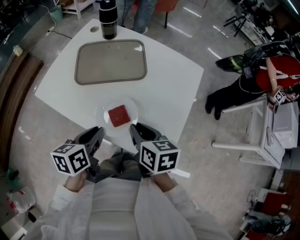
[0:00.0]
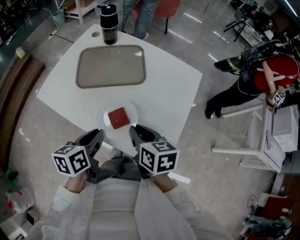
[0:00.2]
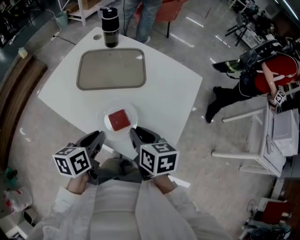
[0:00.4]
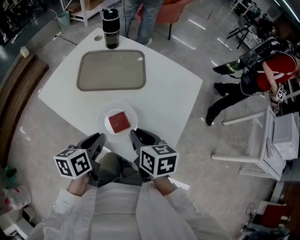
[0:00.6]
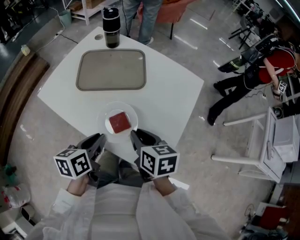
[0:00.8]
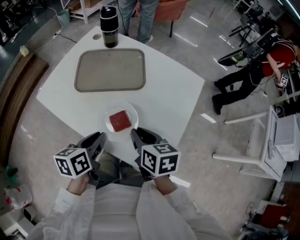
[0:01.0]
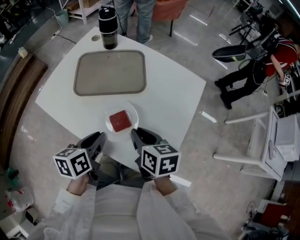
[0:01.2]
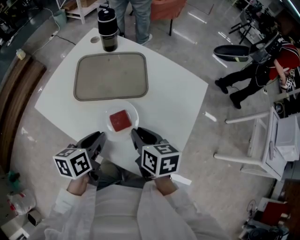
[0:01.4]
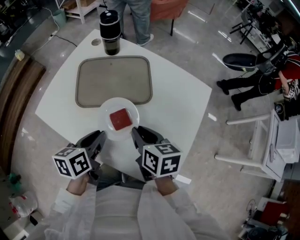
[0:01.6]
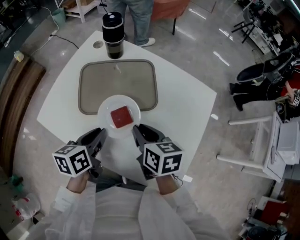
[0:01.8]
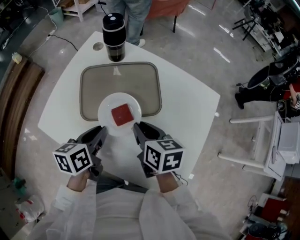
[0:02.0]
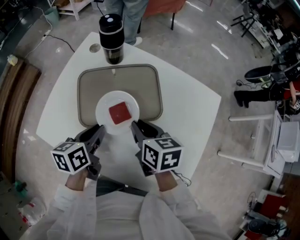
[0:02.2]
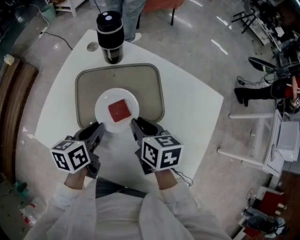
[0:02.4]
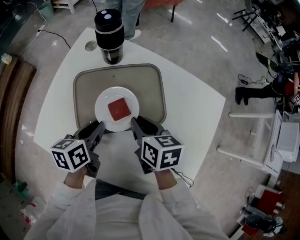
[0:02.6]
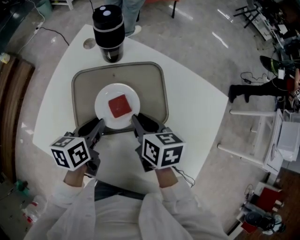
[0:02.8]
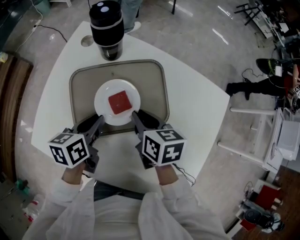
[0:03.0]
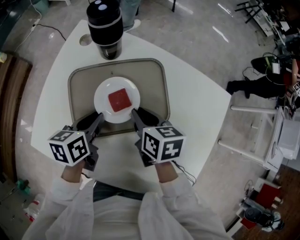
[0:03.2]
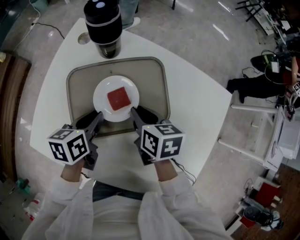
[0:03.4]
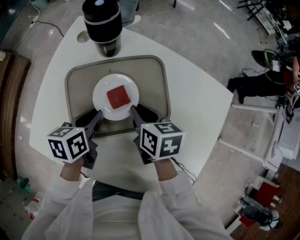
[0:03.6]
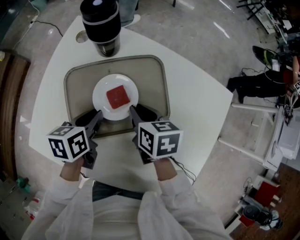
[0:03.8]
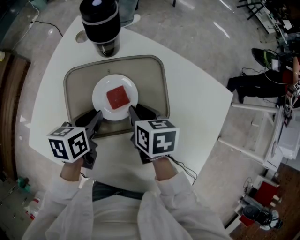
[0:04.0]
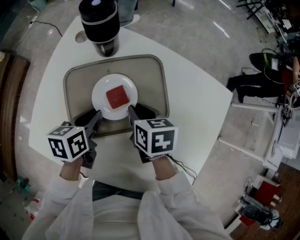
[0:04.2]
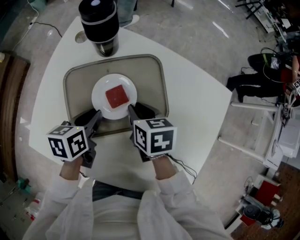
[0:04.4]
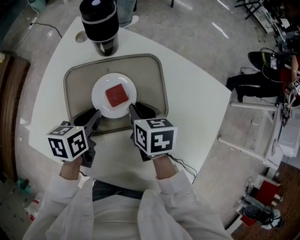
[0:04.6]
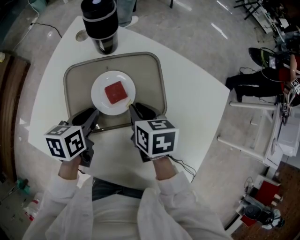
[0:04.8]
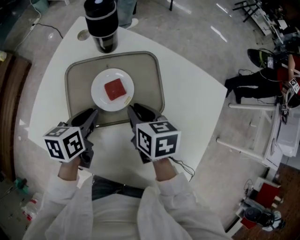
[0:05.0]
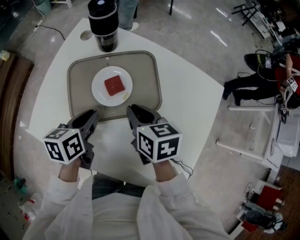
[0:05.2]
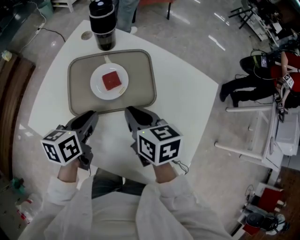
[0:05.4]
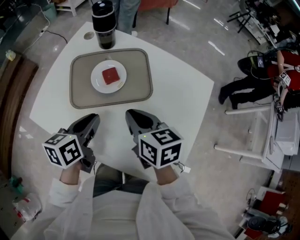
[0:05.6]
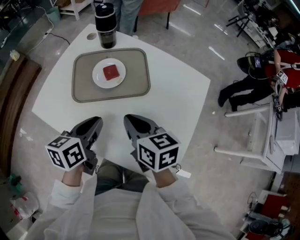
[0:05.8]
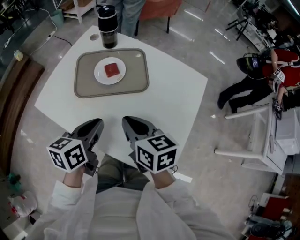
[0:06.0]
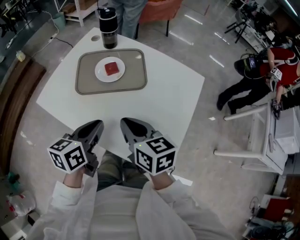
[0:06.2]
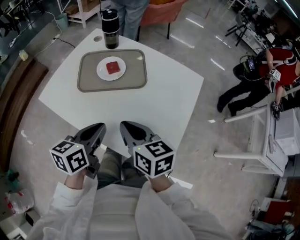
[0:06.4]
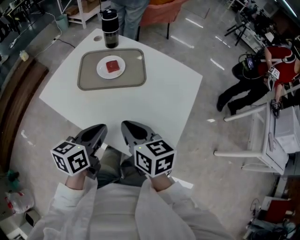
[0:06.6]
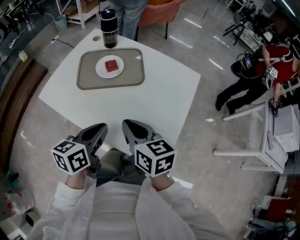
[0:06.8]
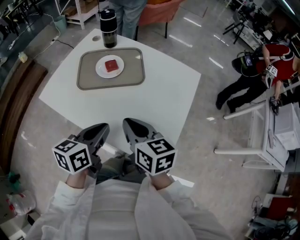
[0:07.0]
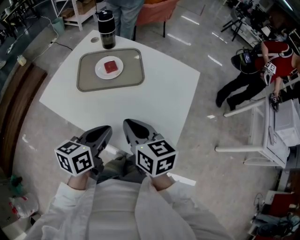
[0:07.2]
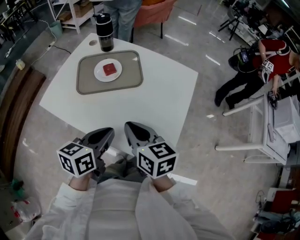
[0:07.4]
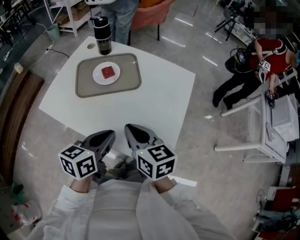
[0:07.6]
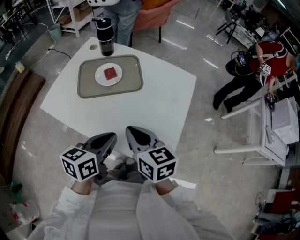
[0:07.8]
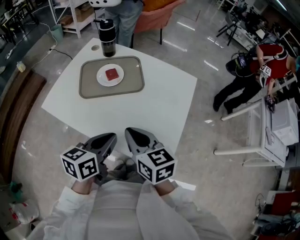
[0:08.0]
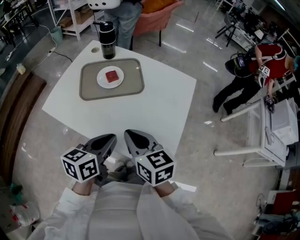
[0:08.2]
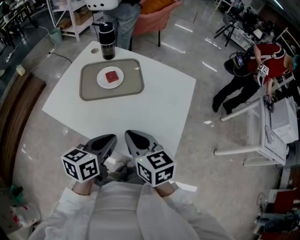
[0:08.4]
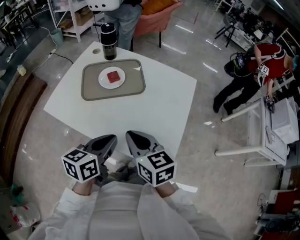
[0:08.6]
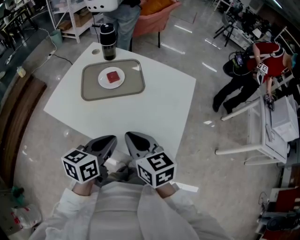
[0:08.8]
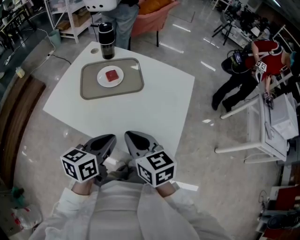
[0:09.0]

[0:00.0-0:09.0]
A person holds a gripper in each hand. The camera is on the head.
0:00.0 to 0:01.6: Both grippers move forward, approximately 10 cm.
0:01.6 to 0:03.0: The grippers both shift forward by roughly 20 cm.
0:03.0 to 0:04.4: The grippers stay close to where they were, moving slightly.
0:04.4 to 0:06.0: Both grippers move backward and upward, some 25 cm. The right gripper swivels about 30 degrees.
0:06.0 to 0:07.6: The right gripper moves backward, approximately 10 cm. Meanwhile the left gripper is displaced backward and to the right by some 10 cm.
0:07.6 to 0:09.0: The grippers make only small movements.

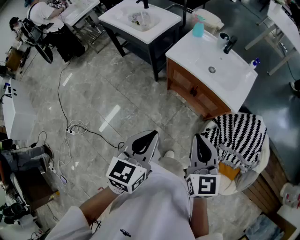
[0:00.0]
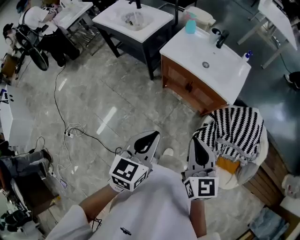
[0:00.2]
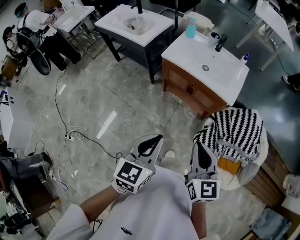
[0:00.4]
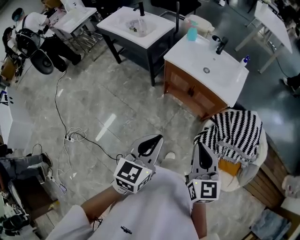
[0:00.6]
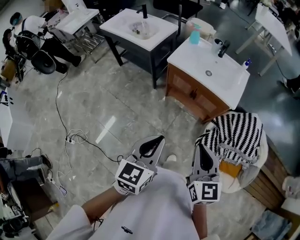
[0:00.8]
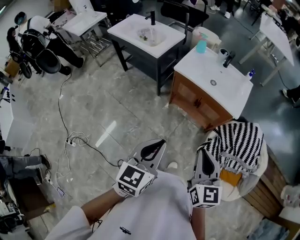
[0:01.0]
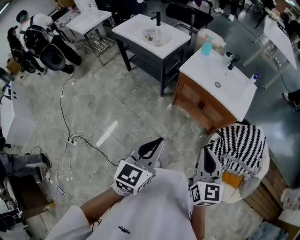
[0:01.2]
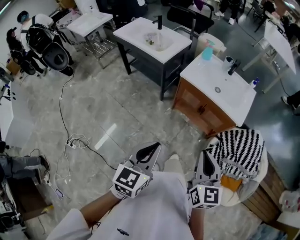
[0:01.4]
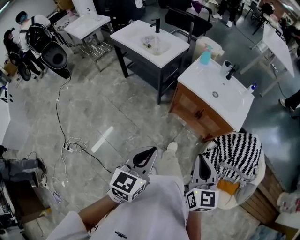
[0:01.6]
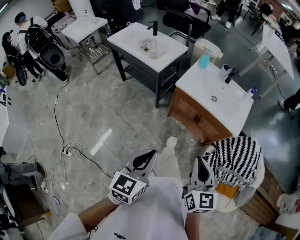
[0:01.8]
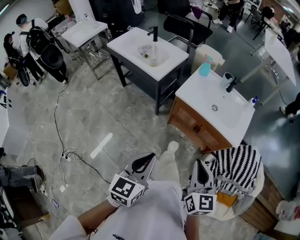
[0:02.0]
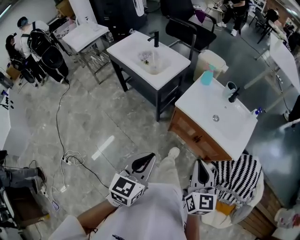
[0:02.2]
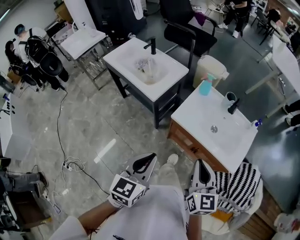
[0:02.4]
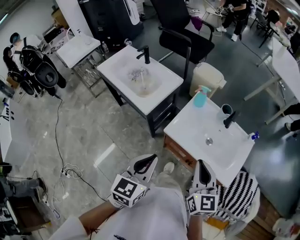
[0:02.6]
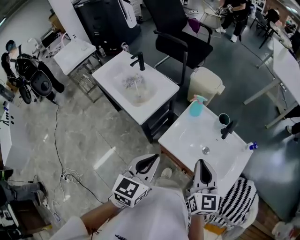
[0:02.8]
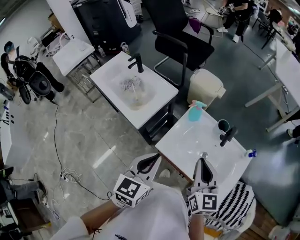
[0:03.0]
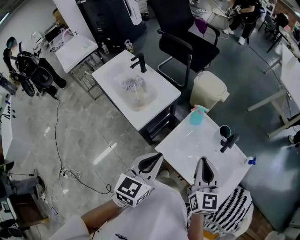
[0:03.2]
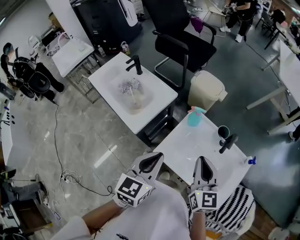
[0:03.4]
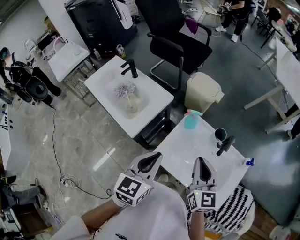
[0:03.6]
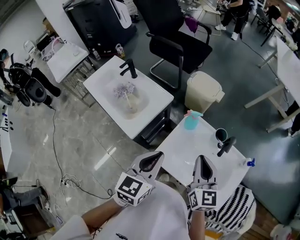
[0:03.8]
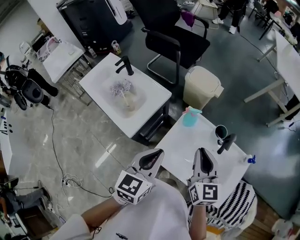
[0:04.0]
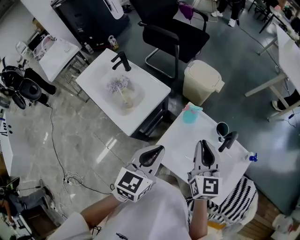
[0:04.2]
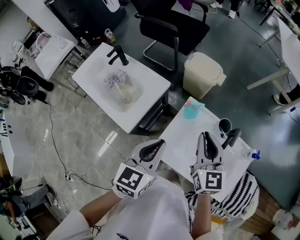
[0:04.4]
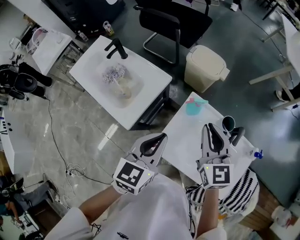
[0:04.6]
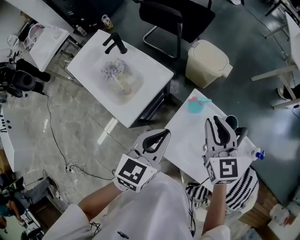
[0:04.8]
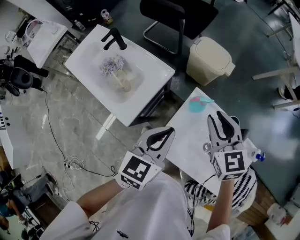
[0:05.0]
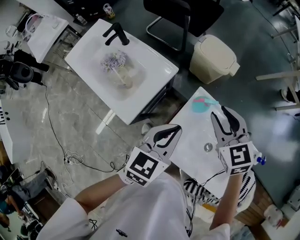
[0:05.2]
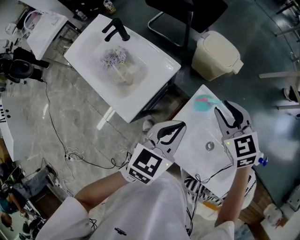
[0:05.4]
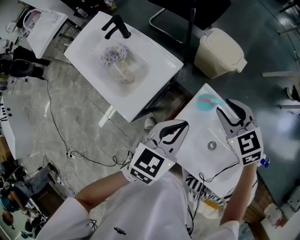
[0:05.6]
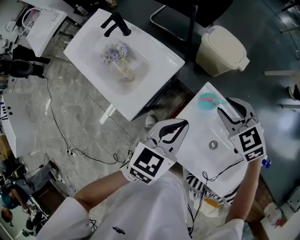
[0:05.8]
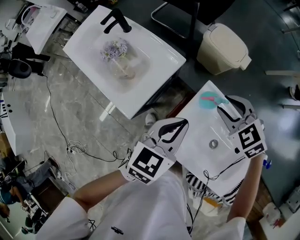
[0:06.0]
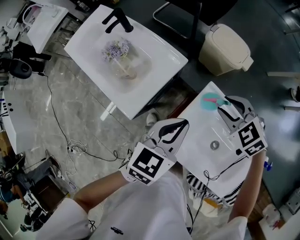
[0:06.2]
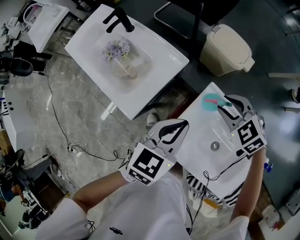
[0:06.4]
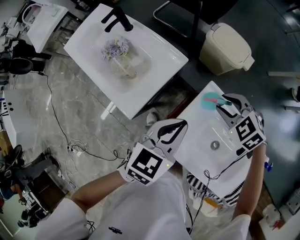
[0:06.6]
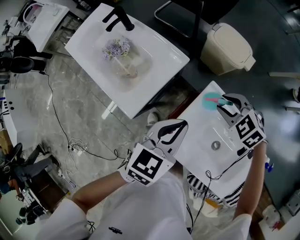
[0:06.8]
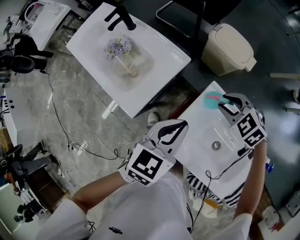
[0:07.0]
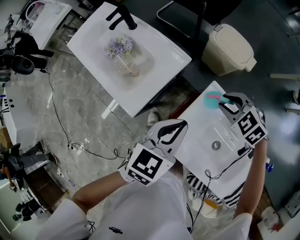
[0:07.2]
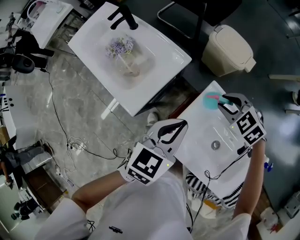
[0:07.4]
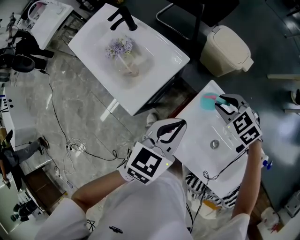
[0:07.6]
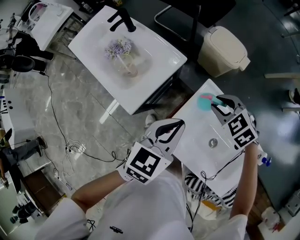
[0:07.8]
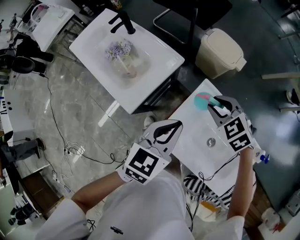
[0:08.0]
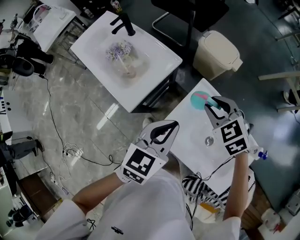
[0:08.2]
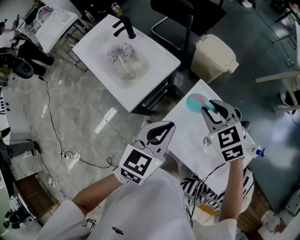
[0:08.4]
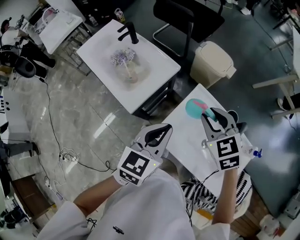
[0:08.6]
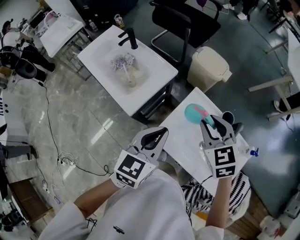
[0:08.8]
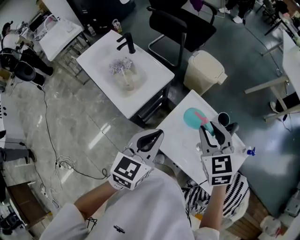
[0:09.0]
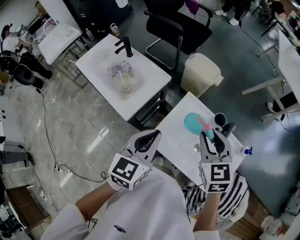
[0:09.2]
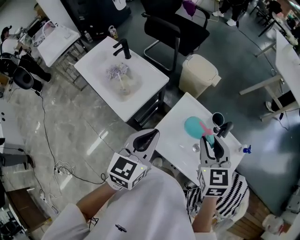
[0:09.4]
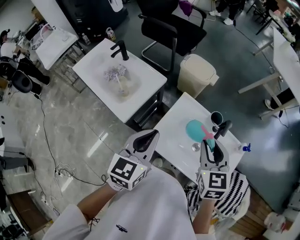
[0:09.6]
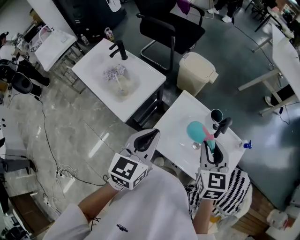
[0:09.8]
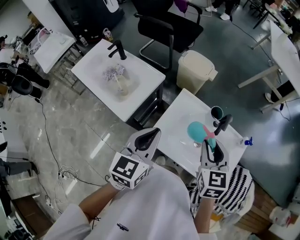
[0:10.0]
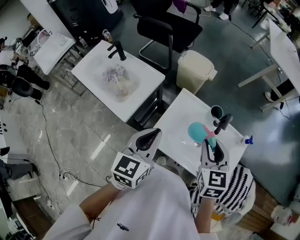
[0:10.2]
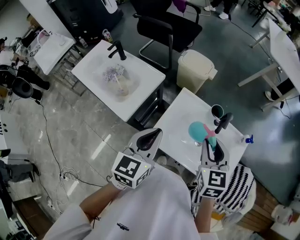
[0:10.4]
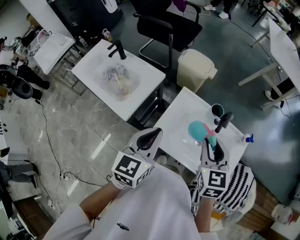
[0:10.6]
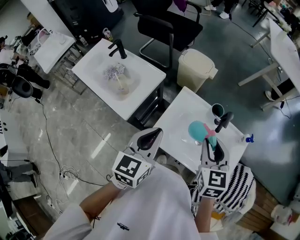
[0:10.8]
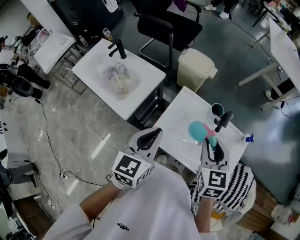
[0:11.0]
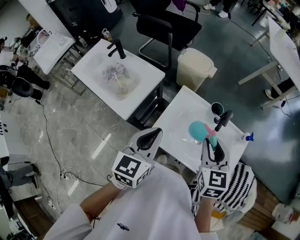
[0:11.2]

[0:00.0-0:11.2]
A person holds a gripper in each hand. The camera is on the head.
0:00.0 to 0:01.6: The grippers both shift to the left by about 10 cm.
0:01.6 to 0:03.2: Both grippers are carried forward, about 50 cm.
0:03.2 to 0:04.8: Both grippers move forward, approximately 15 cm.
0:04.8 to 0:06.4: The left gripper shifts roughly 10 cm downward and forward; the right gripper is displaced downward and forward by some 15 cm, and tilts its fingers approximately 30 degrees downward.
0:06.4 to 0:08.0: The left gripper heads backward, covering some 5 cm.
0:08.0 to 0:09.6: The right gripper moves backward, upward and to the right, some 25 cm, and changes its angle by about 50 degrees; the left gripper shifts some 15 cm backward and upward.
0:09.6 to 0:11.2: The grippers make only small movements.

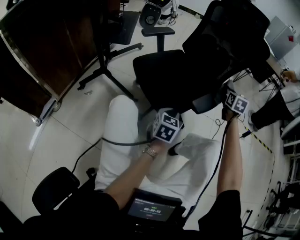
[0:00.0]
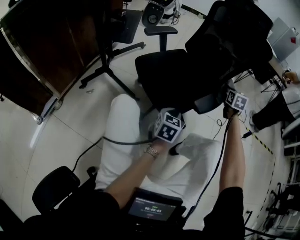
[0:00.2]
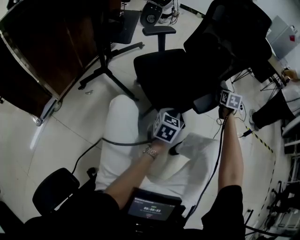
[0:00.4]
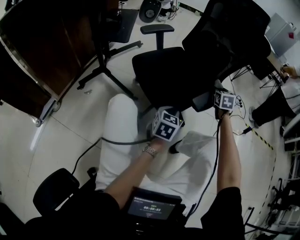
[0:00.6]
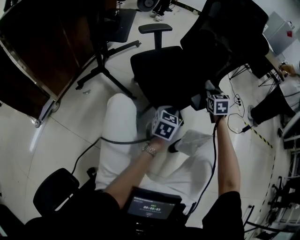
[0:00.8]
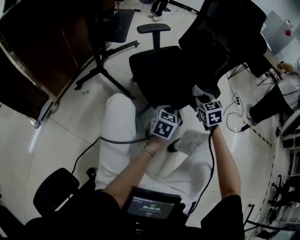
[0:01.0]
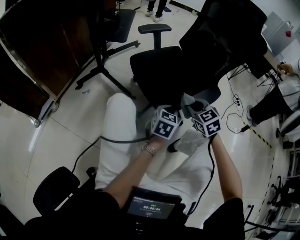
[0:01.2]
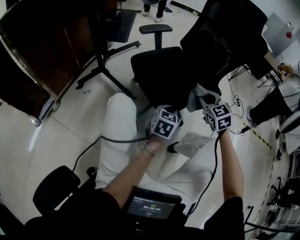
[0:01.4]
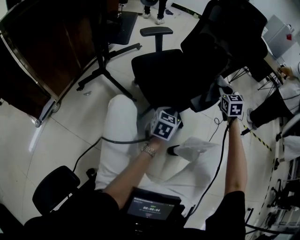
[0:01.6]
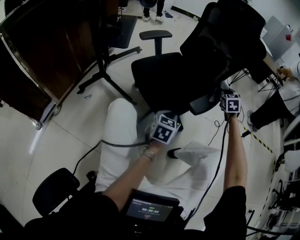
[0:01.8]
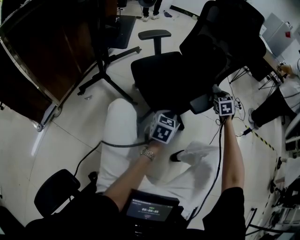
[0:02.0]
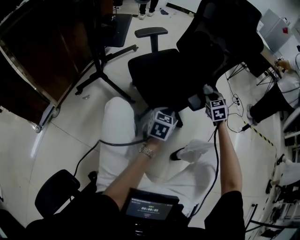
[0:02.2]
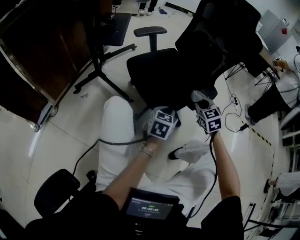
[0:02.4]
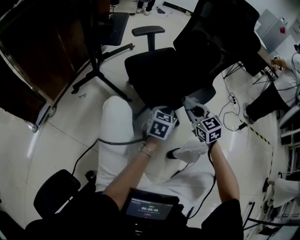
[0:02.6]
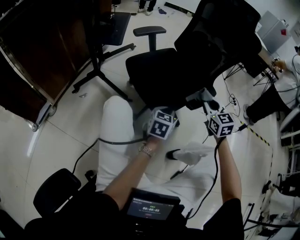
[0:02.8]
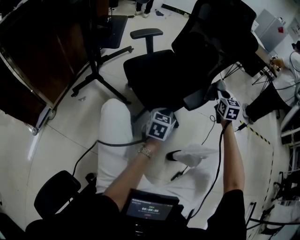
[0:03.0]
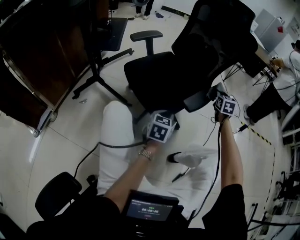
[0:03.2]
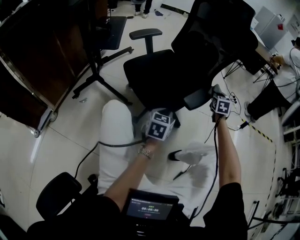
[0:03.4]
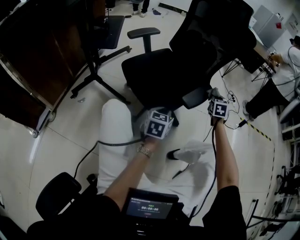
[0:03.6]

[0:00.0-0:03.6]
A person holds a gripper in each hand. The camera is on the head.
0:00.0 to 0:01.8: The right gripper moves approximately 20 cm backward and comes back, and changes its angle by about 30 degrees.
0:01.8 to 0:03.6: The right gripper heads downward, covering approximately 5 cm, and goes backward and returns, approximately 20 cm each way.
